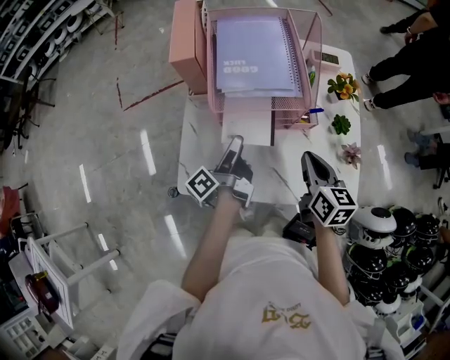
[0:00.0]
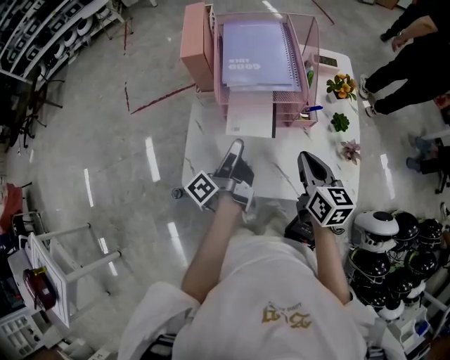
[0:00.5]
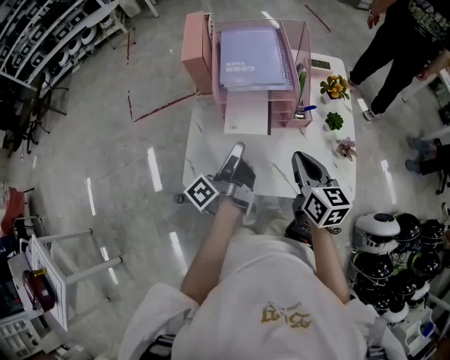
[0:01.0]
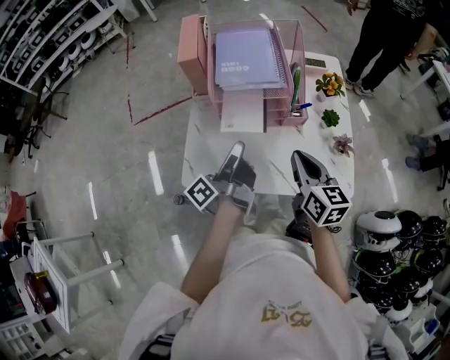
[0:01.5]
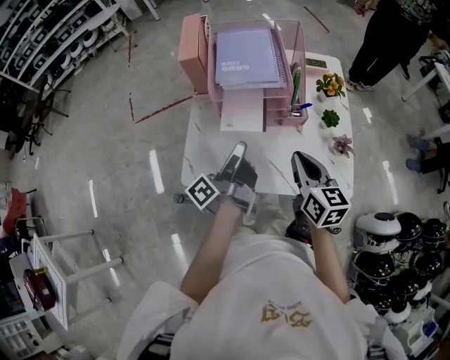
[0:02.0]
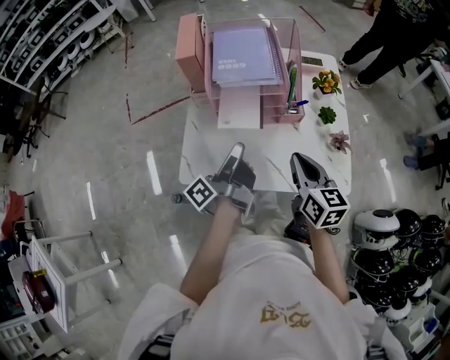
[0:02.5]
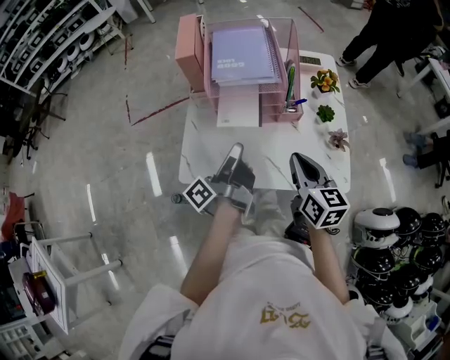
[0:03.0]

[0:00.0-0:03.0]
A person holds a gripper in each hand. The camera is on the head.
0:00.0 to 0:01.5: The right gripper changes place by roughly 10 cm.

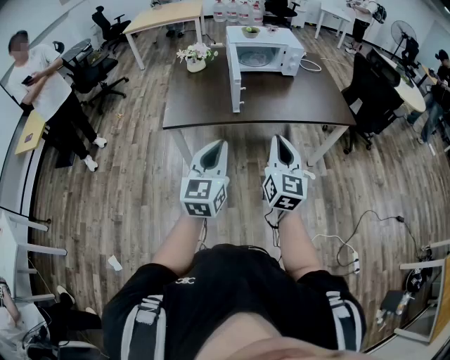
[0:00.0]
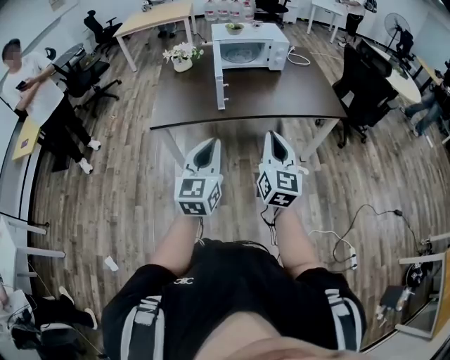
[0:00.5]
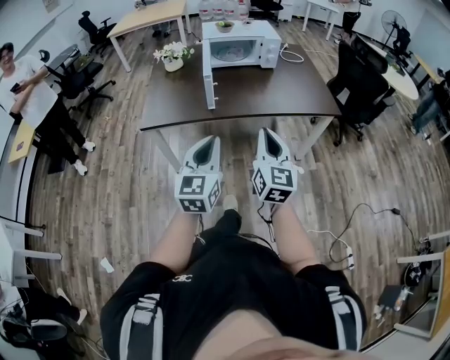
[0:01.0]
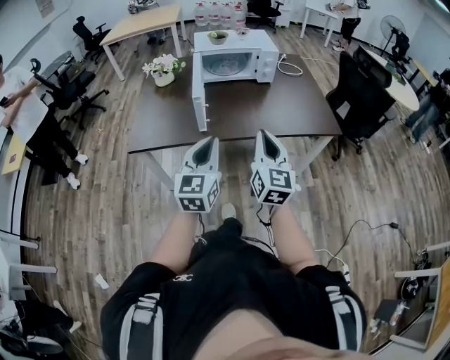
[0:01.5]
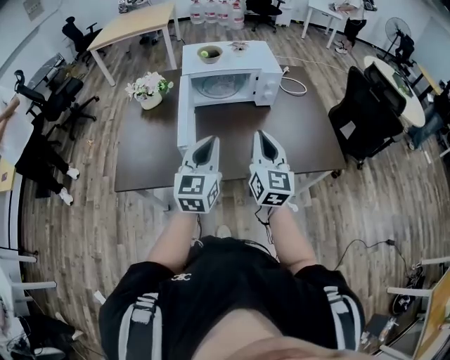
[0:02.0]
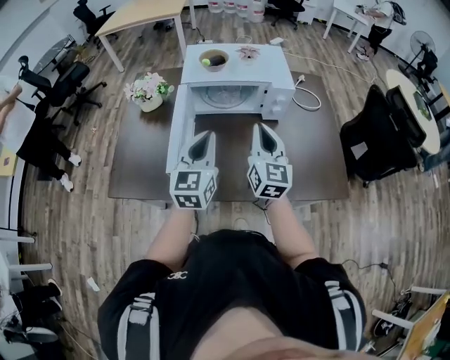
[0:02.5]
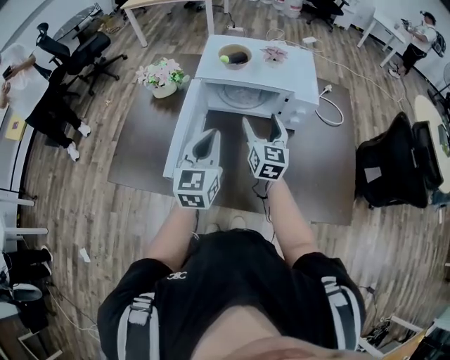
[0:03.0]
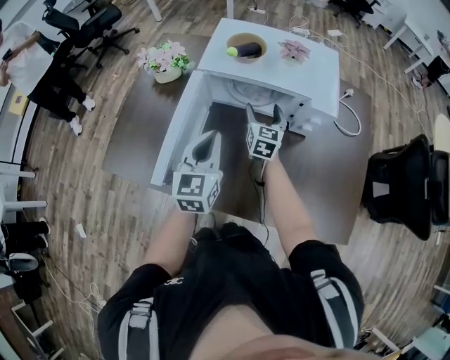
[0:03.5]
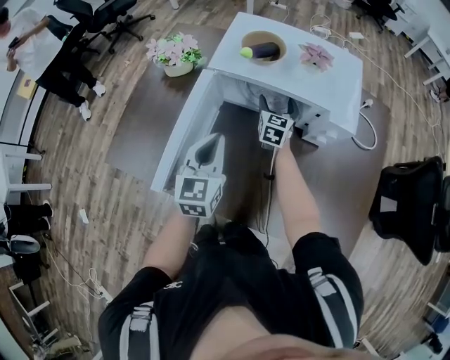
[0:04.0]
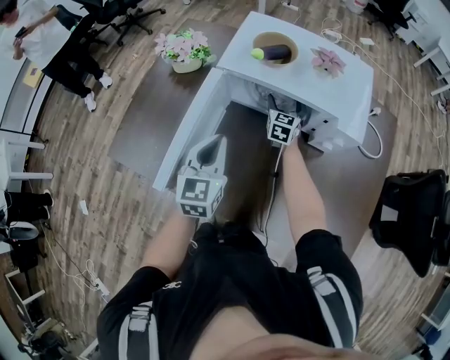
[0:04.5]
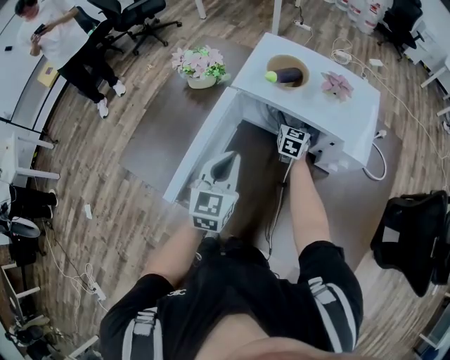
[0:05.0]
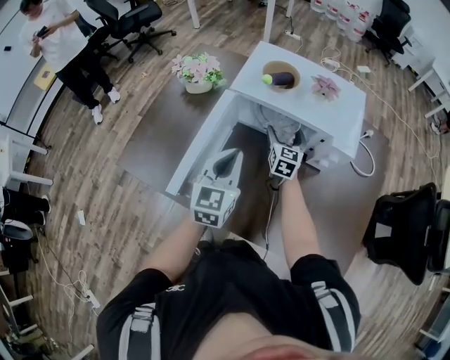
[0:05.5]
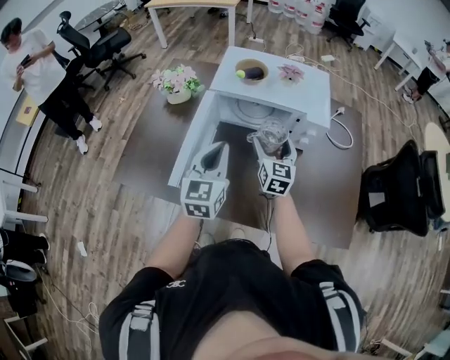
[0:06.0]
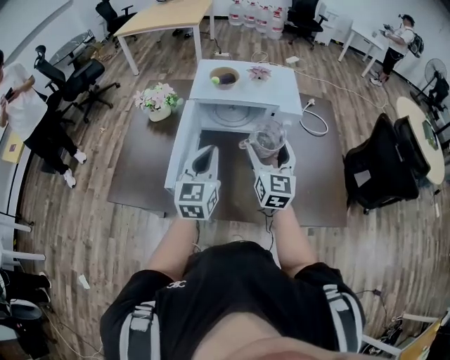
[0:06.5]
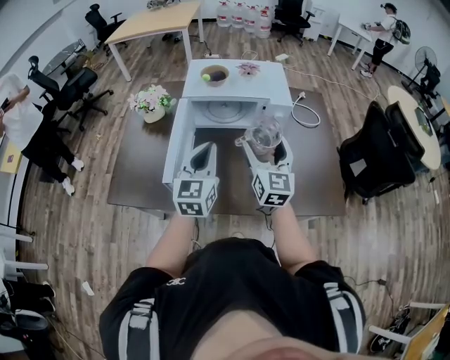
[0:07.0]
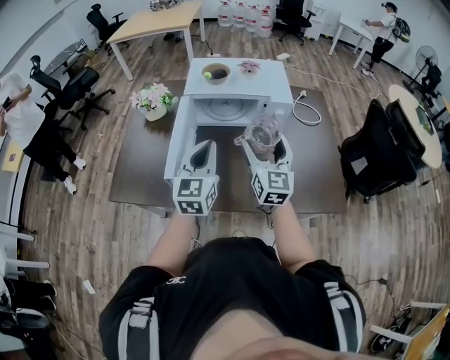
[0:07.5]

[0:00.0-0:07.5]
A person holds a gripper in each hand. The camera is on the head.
0:00.0 to 0:02.0: The two grippers travel together, forward, roughly 40 cm.
0:02.0 to 0:04.0: The right gripper goes some 60 cm forward and downward, changes its angle by about 30 degrees, and opens; the left gripper is displaced forward and downward by some 30 cm, and turns by roughly 30 degrees.
0:04.0 to 0:05.5: The right gripper shifts by approximately 5 cm.
0:05.5 to 0:07.5: The right gripper is displaced backward and upward by roughly 35 cm, and changes its angle by approximately 20 degrees. The left gripper heads backward and upward, covering about 15 cm.

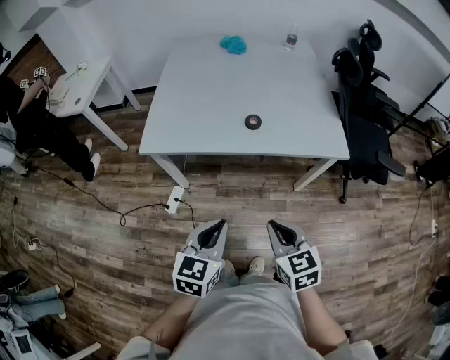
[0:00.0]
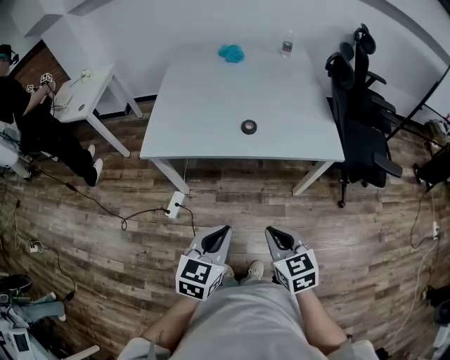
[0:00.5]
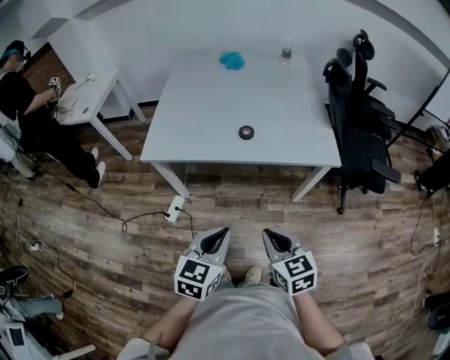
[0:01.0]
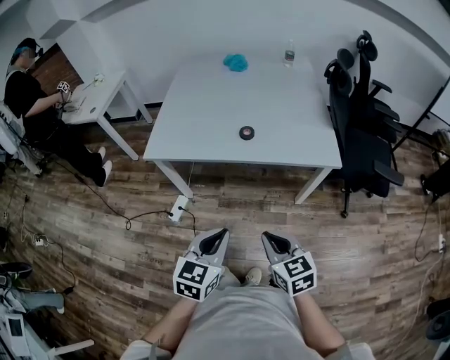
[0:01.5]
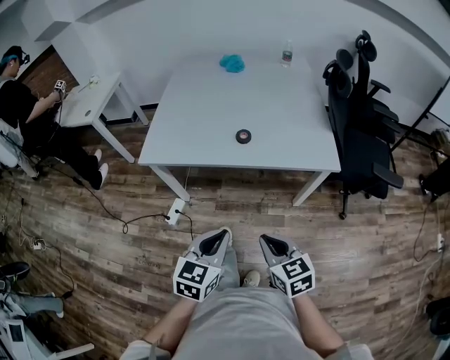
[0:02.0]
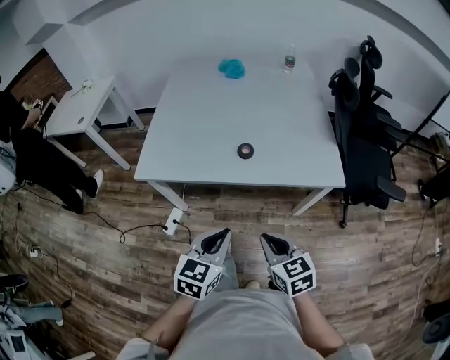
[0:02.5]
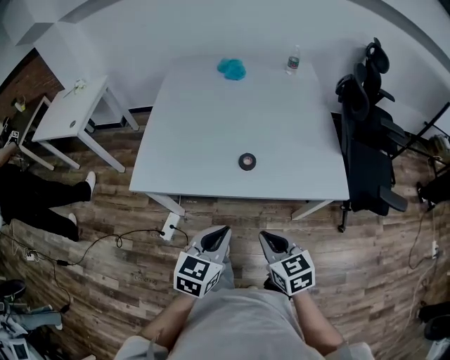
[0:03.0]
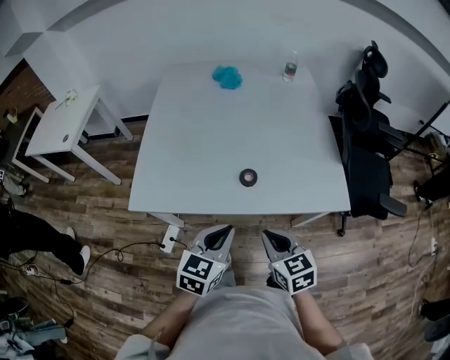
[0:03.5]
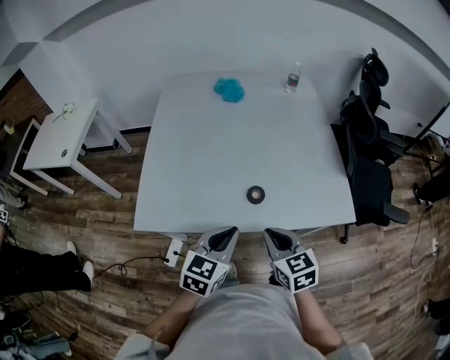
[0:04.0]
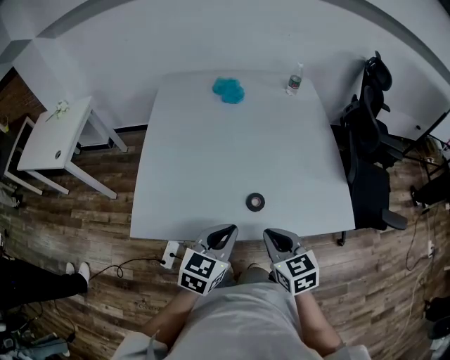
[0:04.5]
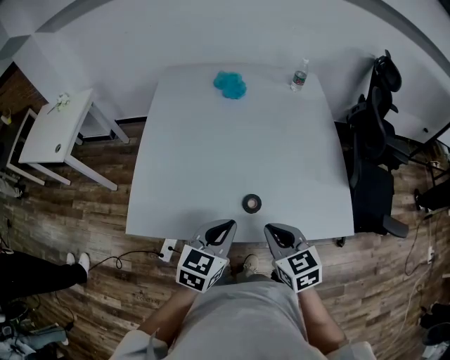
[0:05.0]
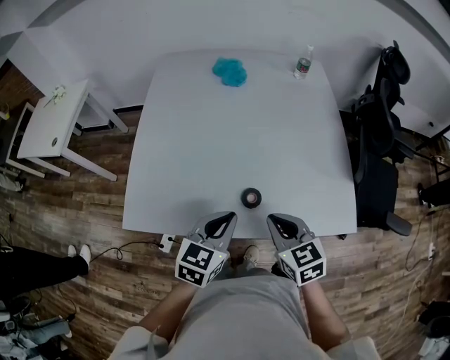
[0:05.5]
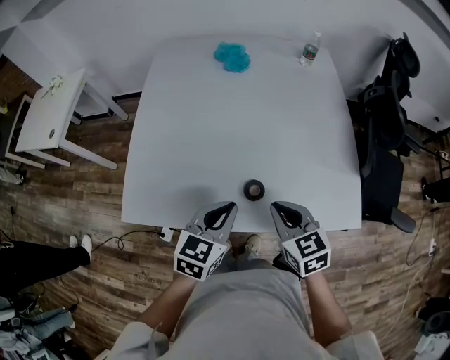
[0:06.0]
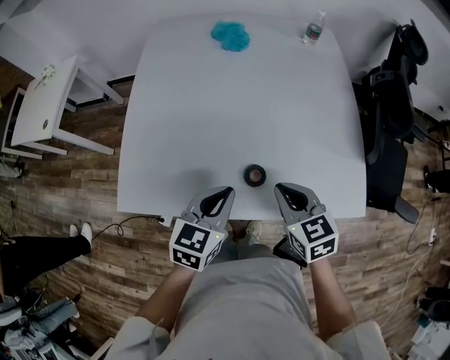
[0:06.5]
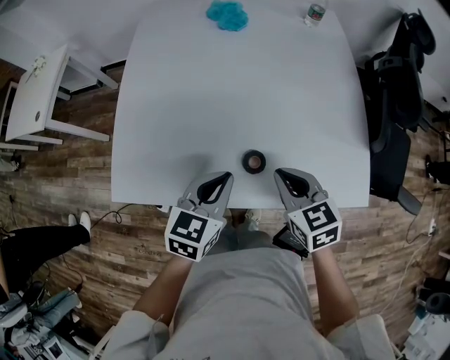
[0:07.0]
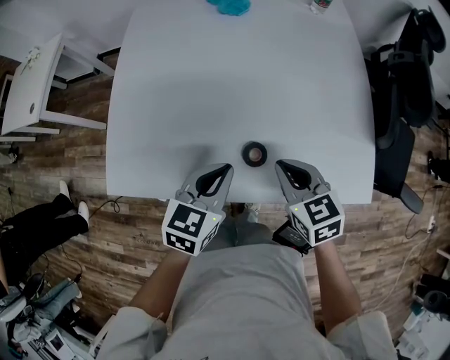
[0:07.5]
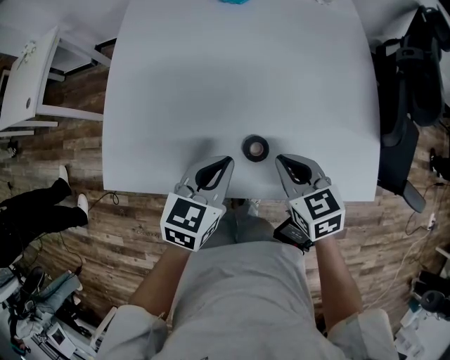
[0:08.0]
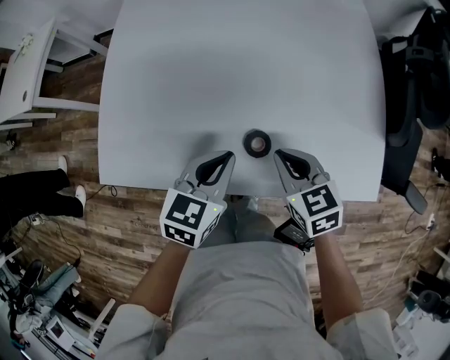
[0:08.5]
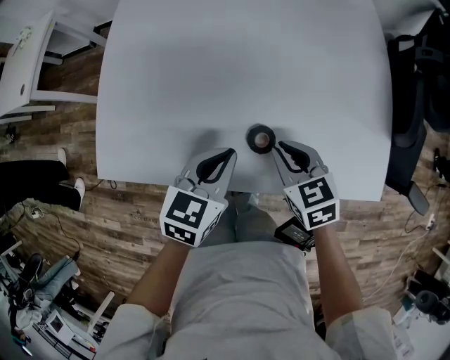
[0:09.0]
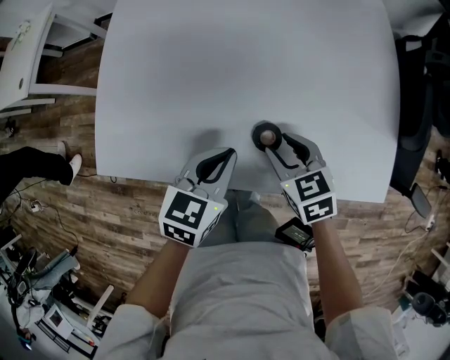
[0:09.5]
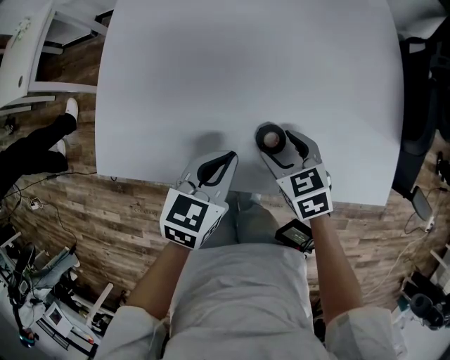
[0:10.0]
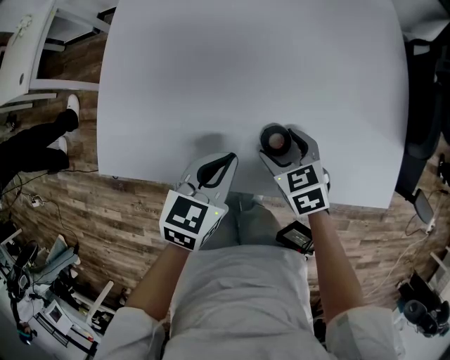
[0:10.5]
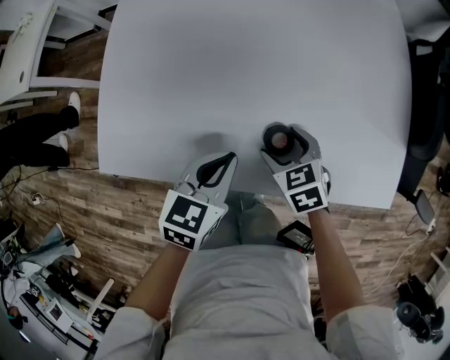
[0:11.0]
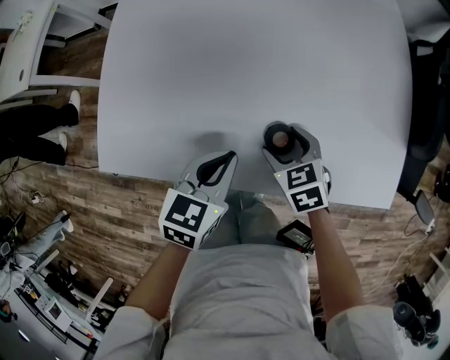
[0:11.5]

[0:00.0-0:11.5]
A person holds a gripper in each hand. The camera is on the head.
0:00.0 to 0:02.0: Both grippers travel together to the right, some 5 cm.
0:02.0 to 0:04.0: The grippers both shift forward by approximately 30 cm.
0:04.0 to 0:06.0: Both grippers move forward, some 10 cm.
0:06.0 to 0:07.5: The right gripper moves approximately 5 cm; the left gripper ends up some 5 cm from where it was.
0:07.5 to 0:09.5: The left gripper is displaced downward by roughly 5 cm. Meanwhile the right gripper travels downward by roughly 10 cm, and opens.
0:09.5 to 0:11.5: The right gripper moves downward, approximately 5 cm, and opens up.

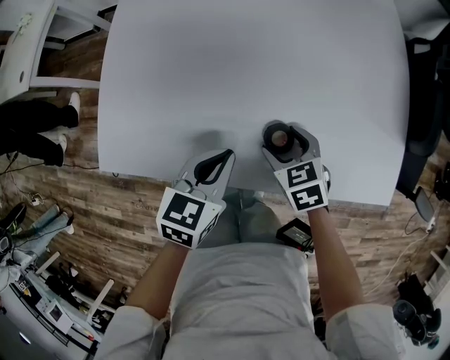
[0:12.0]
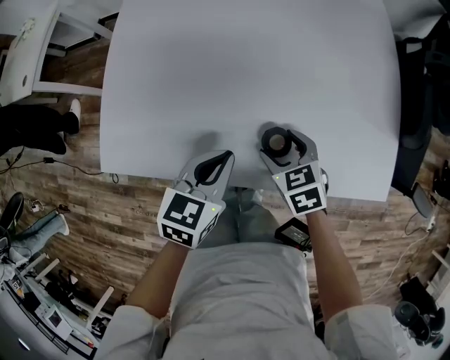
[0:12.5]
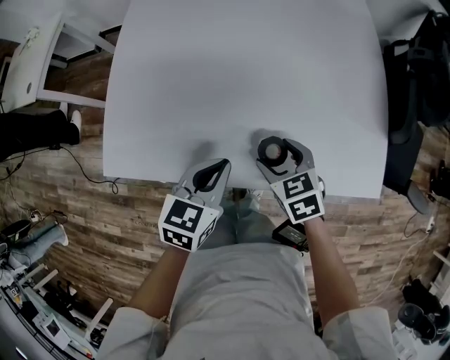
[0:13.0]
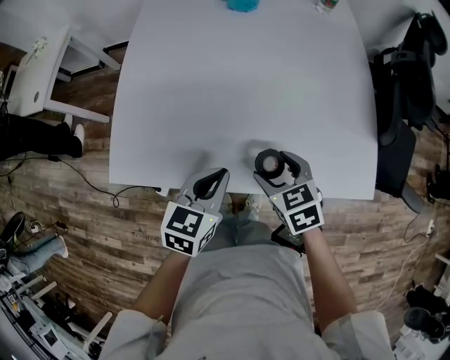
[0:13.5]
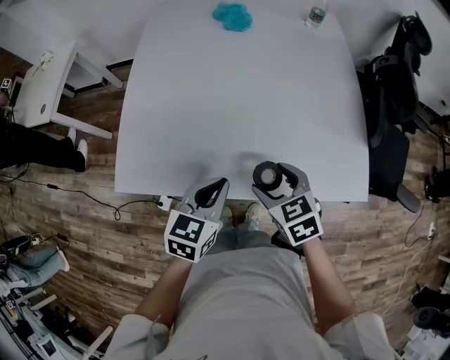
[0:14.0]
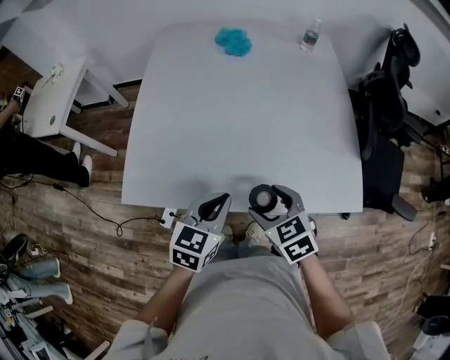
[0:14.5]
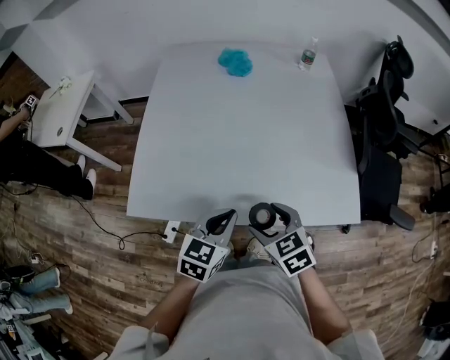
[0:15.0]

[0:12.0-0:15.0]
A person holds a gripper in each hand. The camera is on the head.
0:12.0 to 0:13.5: The left gripper heads upward, covering some 5 cm. The right gripper is displaced upward by about 10 cm.
0:13.5 to 0:15.0: The right gripper travels backward and upward by roughly 10 cm, while the left gripper shifts some 5 cm upward.

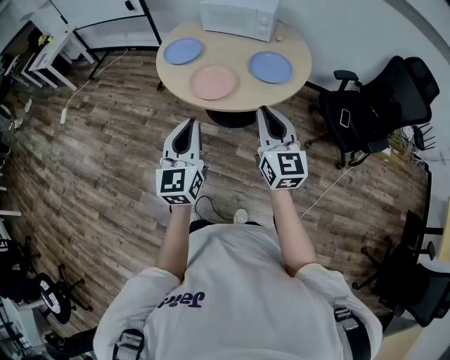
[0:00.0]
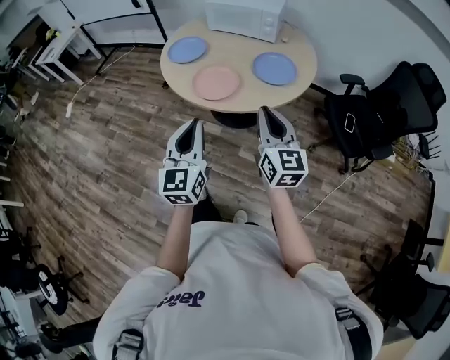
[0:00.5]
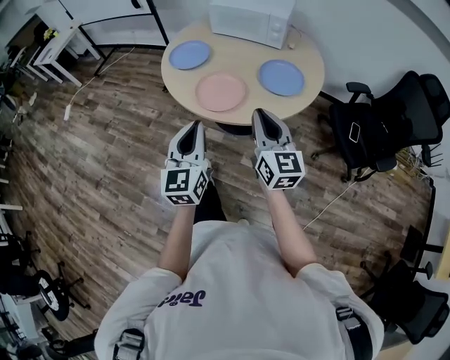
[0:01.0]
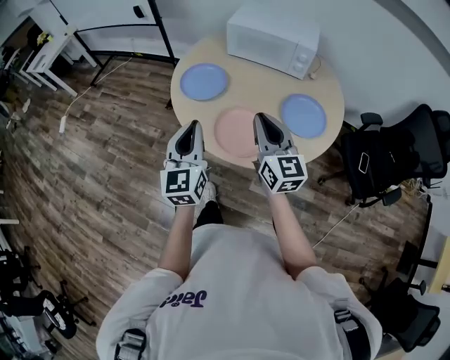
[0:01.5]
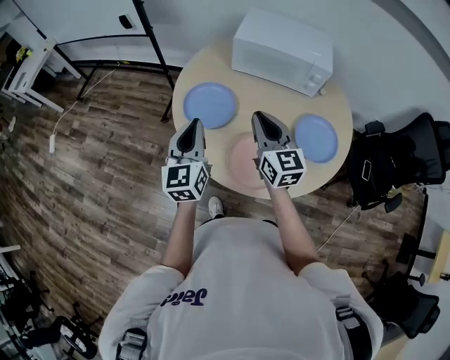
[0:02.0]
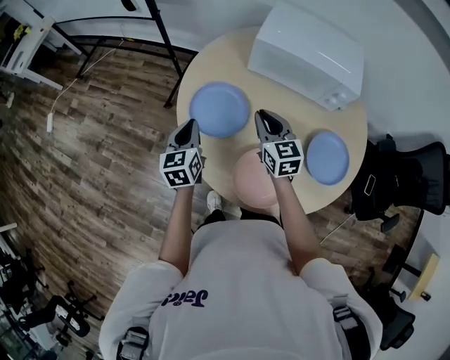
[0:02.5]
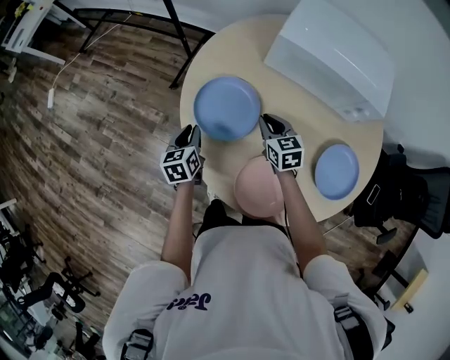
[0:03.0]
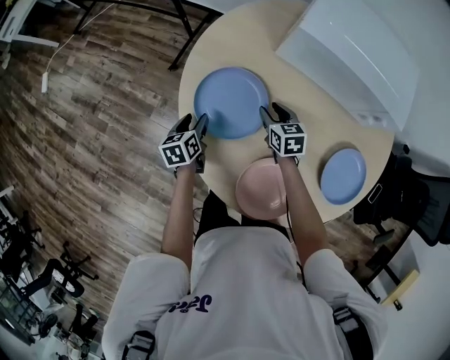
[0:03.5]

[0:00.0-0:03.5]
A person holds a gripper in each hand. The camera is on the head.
0:00.0 to 0:02.0: Both grippers are carried forward, roughly 50 cm.
0:02.0 to 0:03.5: The grippers both shift downward and forward by about 40 cm. The left gripper points its fingers some 40 degrees further downward, and opens. The right gripper tips its fingers downward by roughly 40 degrees, and opens up.
